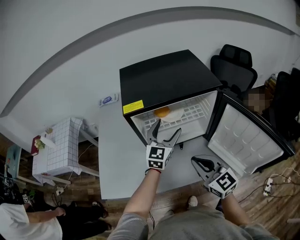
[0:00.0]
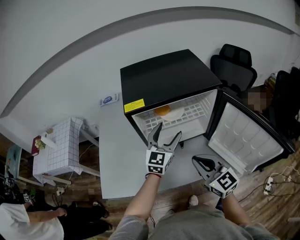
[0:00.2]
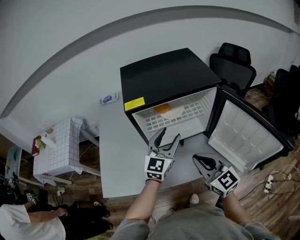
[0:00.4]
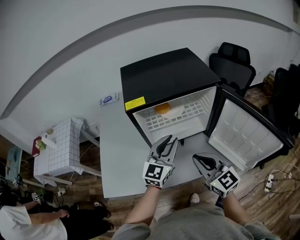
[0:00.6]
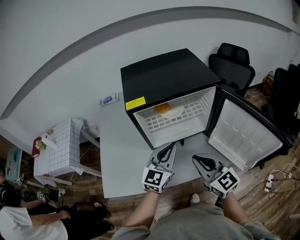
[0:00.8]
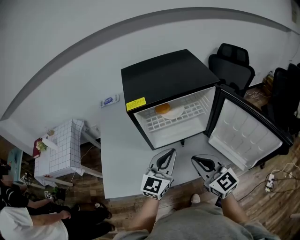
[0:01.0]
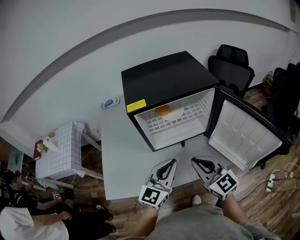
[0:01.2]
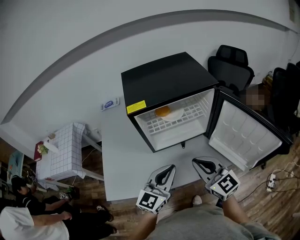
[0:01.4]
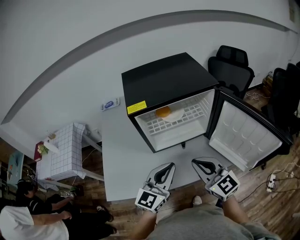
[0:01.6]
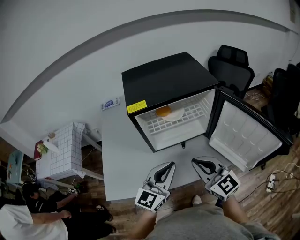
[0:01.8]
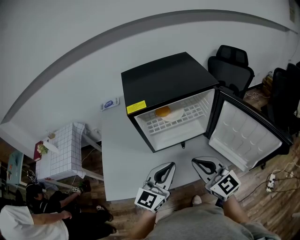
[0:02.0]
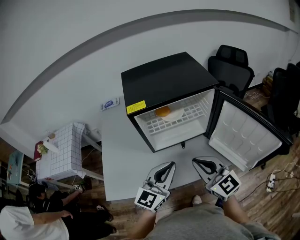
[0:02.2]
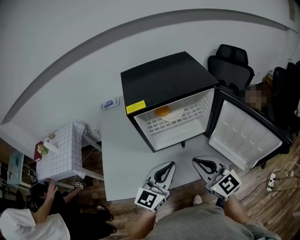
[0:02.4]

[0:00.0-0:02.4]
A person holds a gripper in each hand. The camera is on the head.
0:00.0 to 0:01.2: The left gripper is displaced backward by some 20 cm, and closes its fingers.
0:01.2 to 0:02.4: The grippers move only a little.

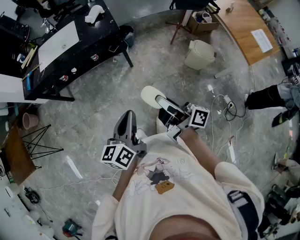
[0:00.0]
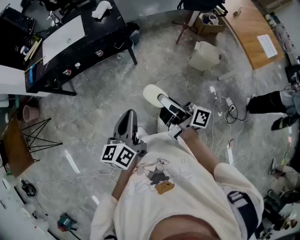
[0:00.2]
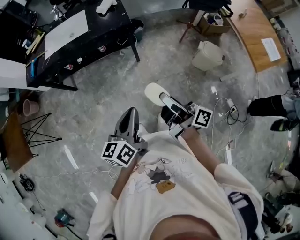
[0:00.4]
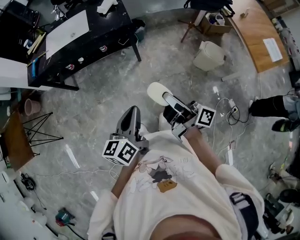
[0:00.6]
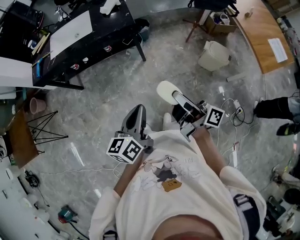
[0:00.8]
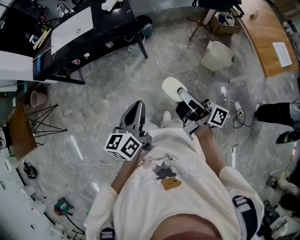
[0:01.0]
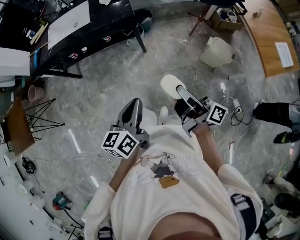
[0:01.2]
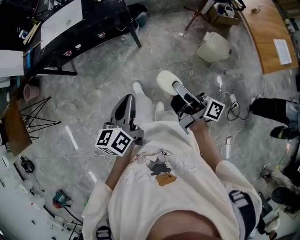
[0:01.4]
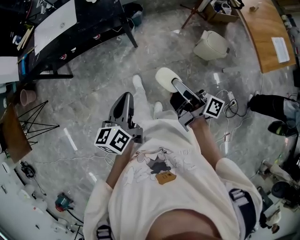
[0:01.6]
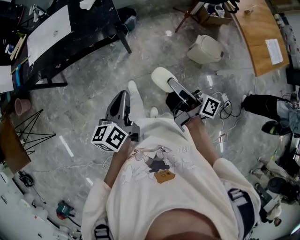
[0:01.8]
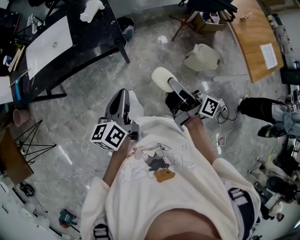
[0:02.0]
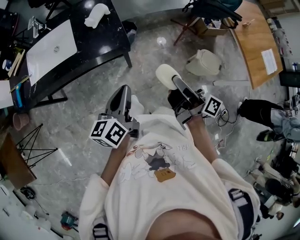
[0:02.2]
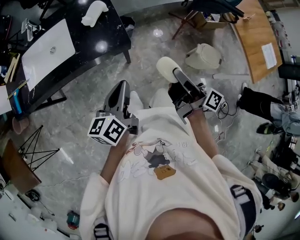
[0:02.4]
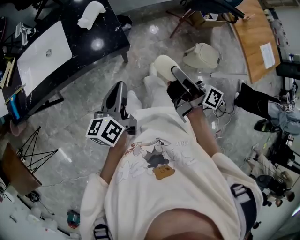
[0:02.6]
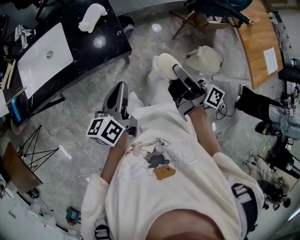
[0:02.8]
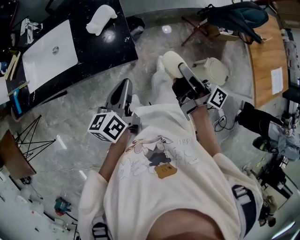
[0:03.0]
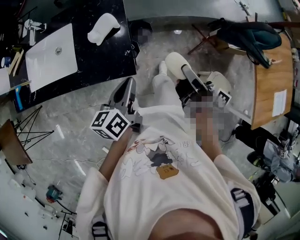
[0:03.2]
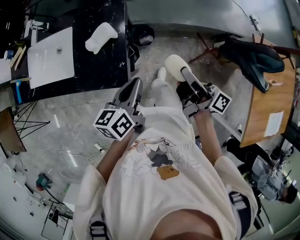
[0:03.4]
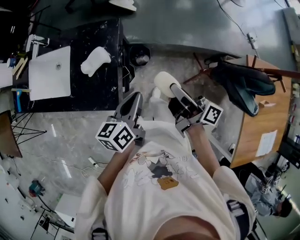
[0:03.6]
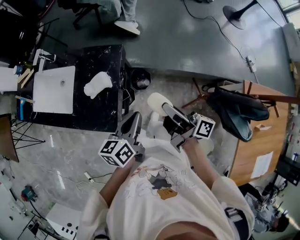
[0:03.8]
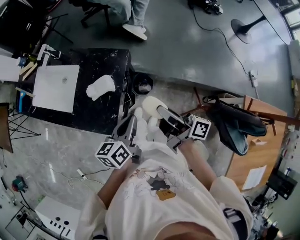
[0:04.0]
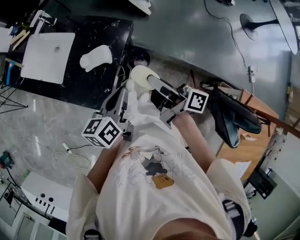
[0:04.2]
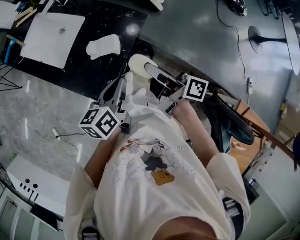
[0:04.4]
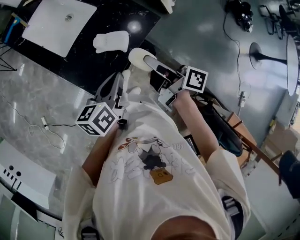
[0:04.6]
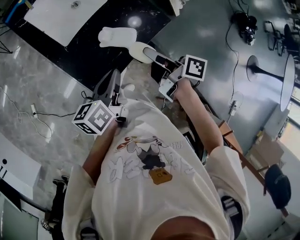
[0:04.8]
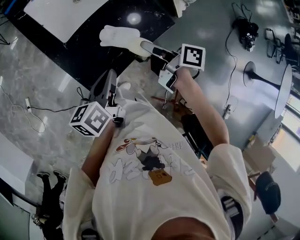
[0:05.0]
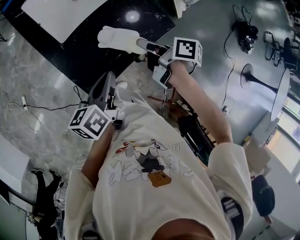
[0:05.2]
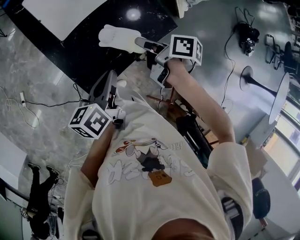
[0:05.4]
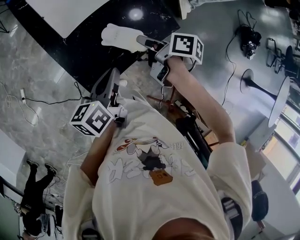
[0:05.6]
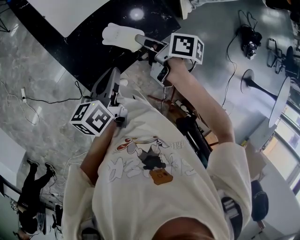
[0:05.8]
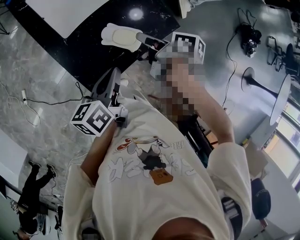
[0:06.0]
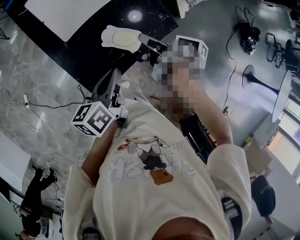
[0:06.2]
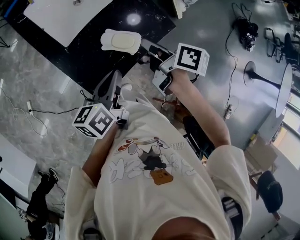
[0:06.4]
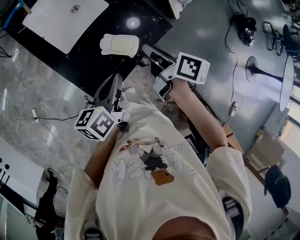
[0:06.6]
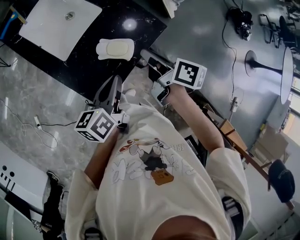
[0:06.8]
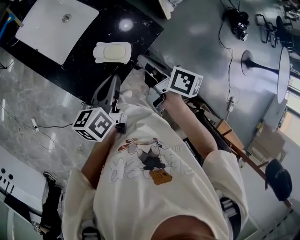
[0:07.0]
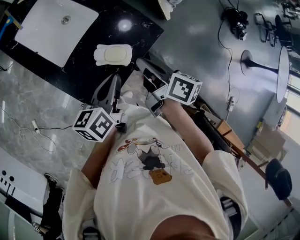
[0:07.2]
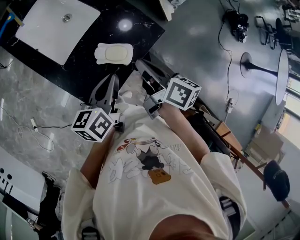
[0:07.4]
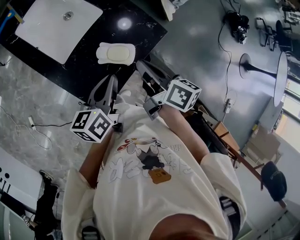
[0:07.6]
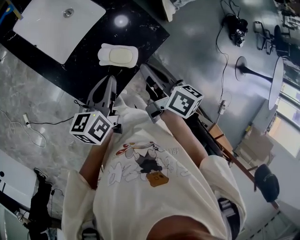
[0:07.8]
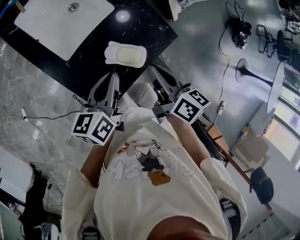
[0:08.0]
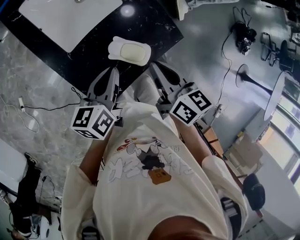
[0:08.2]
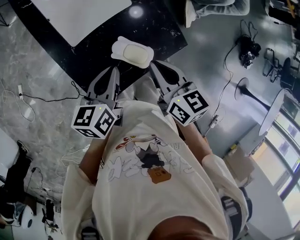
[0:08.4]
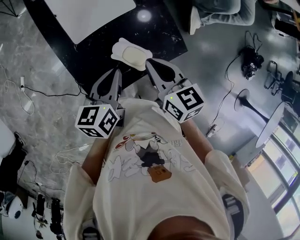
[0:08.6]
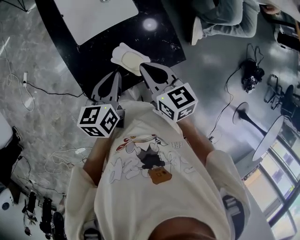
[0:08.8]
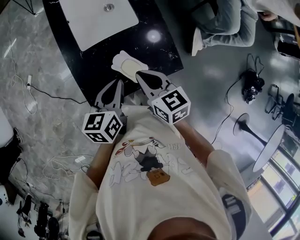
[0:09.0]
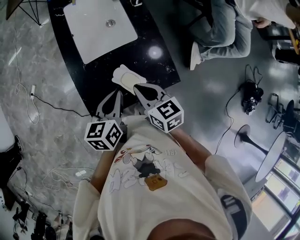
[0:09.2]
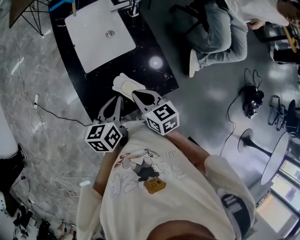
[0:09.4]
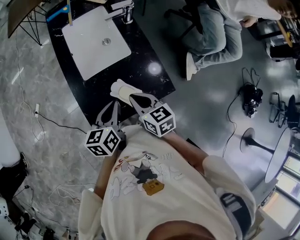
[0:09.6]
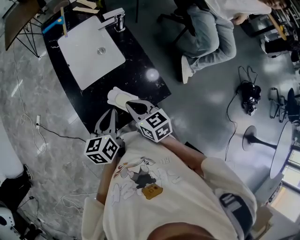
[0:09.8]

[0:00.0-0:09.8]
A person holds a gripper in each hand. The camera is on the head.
0:00.0 to 0:01.4: The left gripper shifts roughly 10 cm forward and to the right, while the right gripper moves to the right and forward, some 10 cm.
0:01.4 to 0:02.8: Both grippers move forward, about 40 cm.
0:02.8 to 0:04.2: The right gripper moves about 40 cm, and swivels about 50 degrees. Meanwhile the left gripper ends up about 35 cm from where it was, and rotates approximately 30 degrees.
0:04.2 to 0:05.6: The left gripper shifts by some 15 cm, and changes its angle by some 40 degrees; the right gripper moves some 25 cm, and points its fingers about 40 degrees further downward.
0:05.6 to 0:07.0: The right gripper moves upward, approximately 10 cm, turns by about 30 degrees, and closes up.
0:07.0 to 0:08.4: The right gripper travels to the left by about 5 cm, and rolls counterclockwise, seen from behind, by some 40 degrees; the left gripper goes roughly 10 cm to the left and forward.
0:08.4 to 0:09.8: The left gripper shifts roughly 5 cm backward. The right gripper rotates approximately 20 degrees.

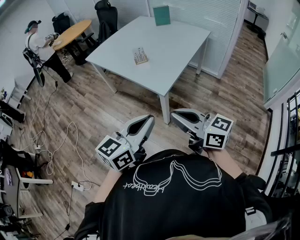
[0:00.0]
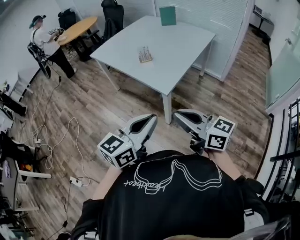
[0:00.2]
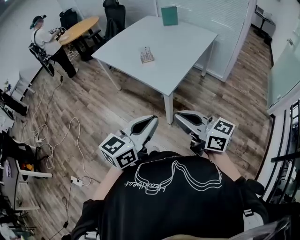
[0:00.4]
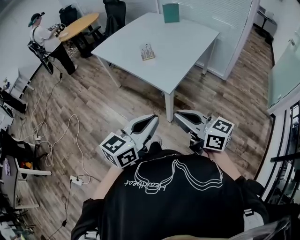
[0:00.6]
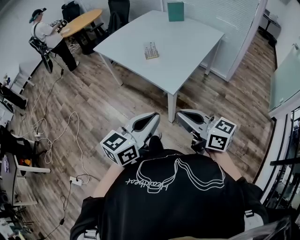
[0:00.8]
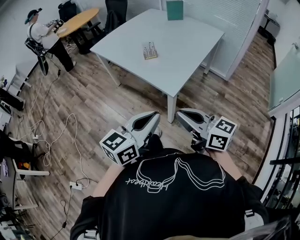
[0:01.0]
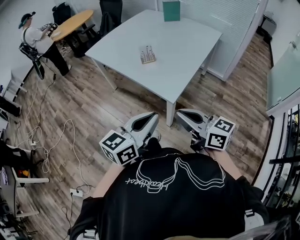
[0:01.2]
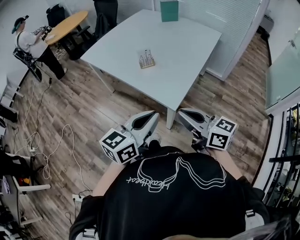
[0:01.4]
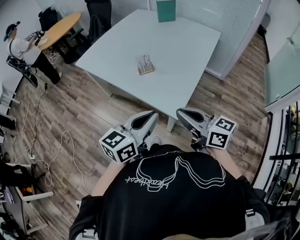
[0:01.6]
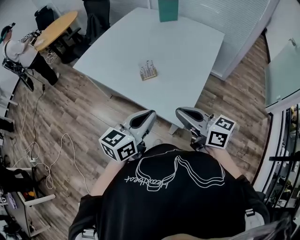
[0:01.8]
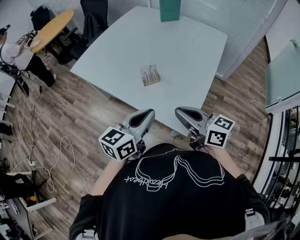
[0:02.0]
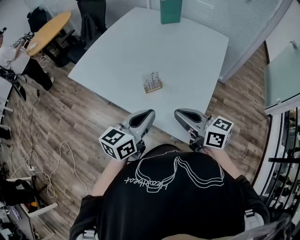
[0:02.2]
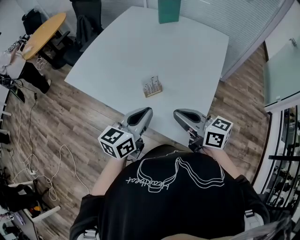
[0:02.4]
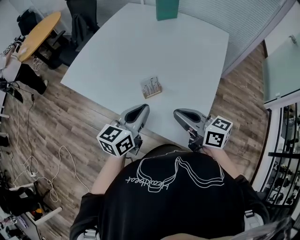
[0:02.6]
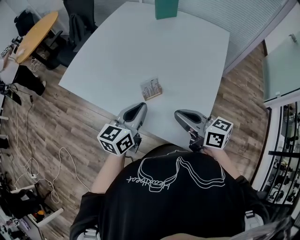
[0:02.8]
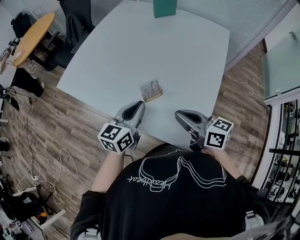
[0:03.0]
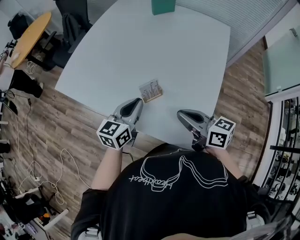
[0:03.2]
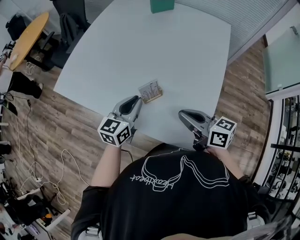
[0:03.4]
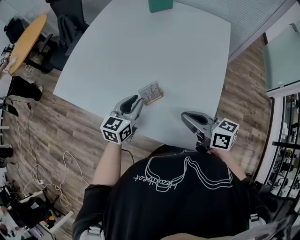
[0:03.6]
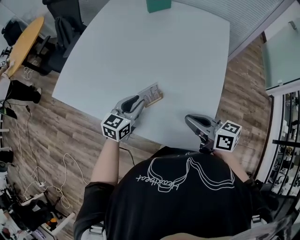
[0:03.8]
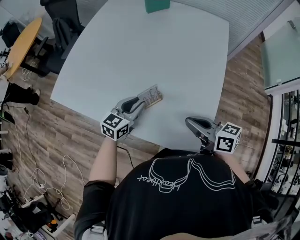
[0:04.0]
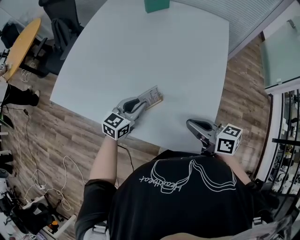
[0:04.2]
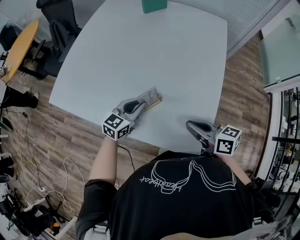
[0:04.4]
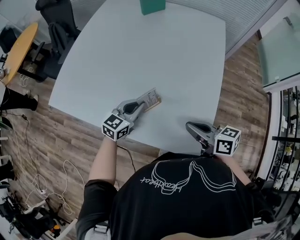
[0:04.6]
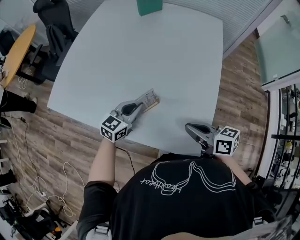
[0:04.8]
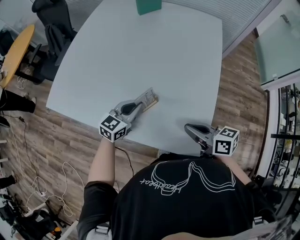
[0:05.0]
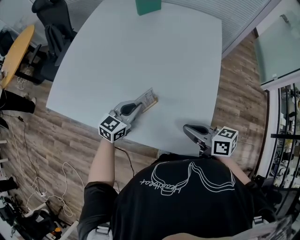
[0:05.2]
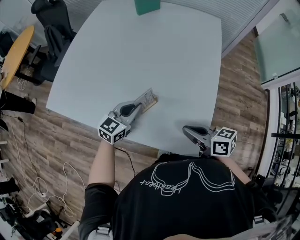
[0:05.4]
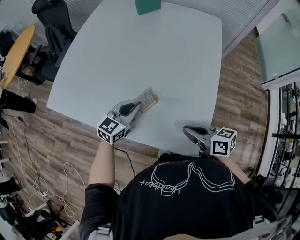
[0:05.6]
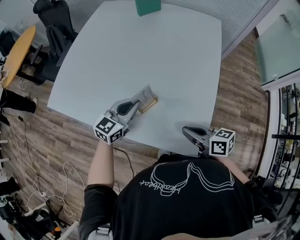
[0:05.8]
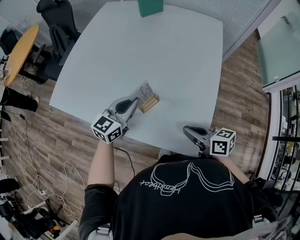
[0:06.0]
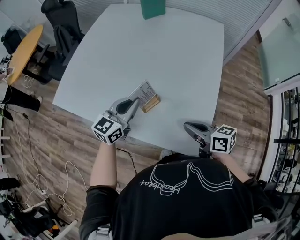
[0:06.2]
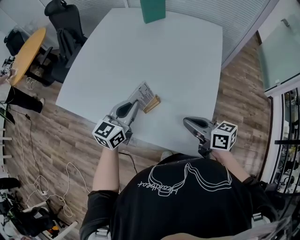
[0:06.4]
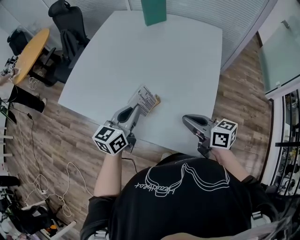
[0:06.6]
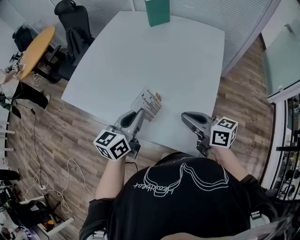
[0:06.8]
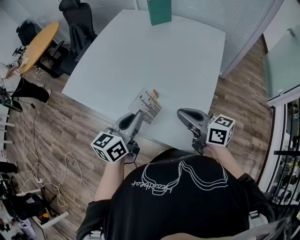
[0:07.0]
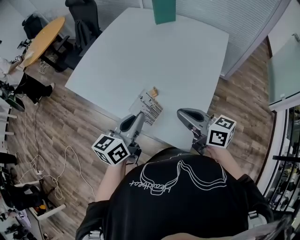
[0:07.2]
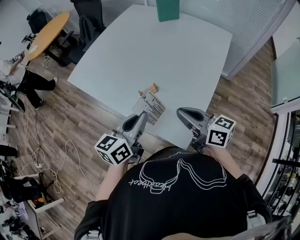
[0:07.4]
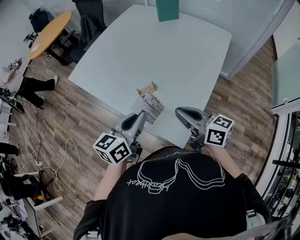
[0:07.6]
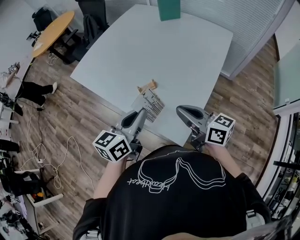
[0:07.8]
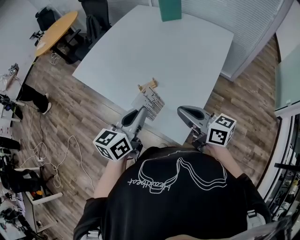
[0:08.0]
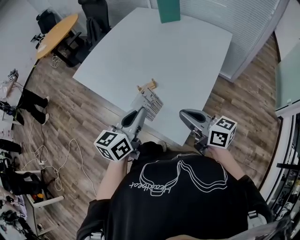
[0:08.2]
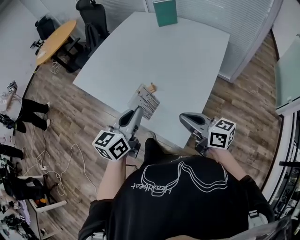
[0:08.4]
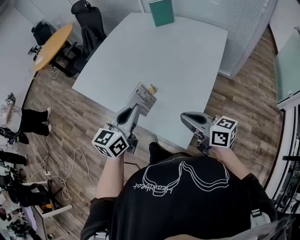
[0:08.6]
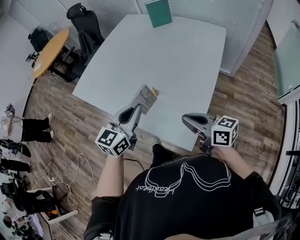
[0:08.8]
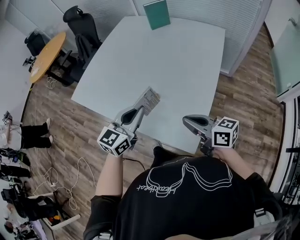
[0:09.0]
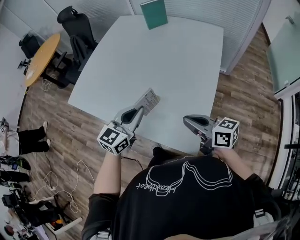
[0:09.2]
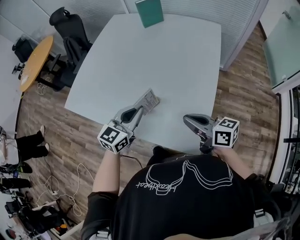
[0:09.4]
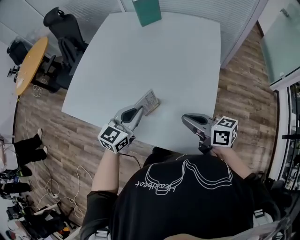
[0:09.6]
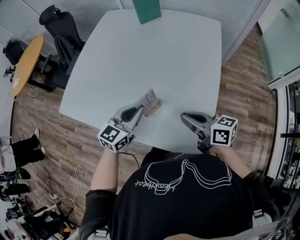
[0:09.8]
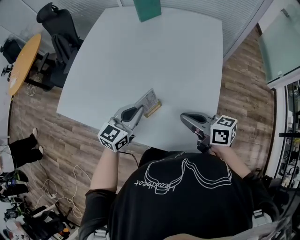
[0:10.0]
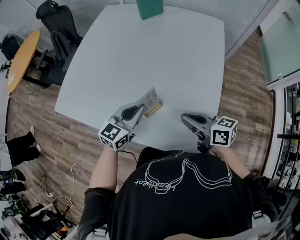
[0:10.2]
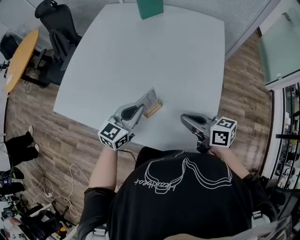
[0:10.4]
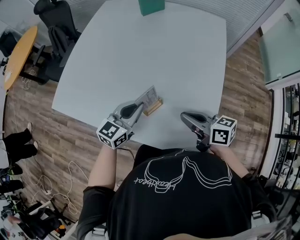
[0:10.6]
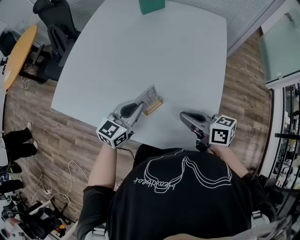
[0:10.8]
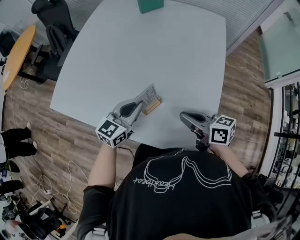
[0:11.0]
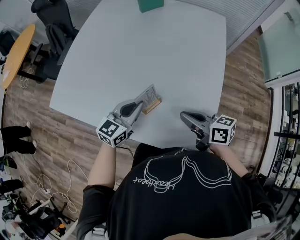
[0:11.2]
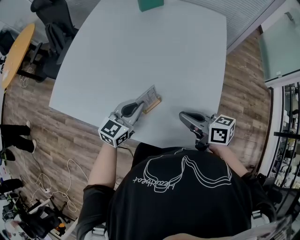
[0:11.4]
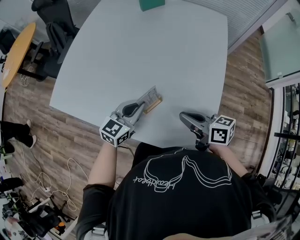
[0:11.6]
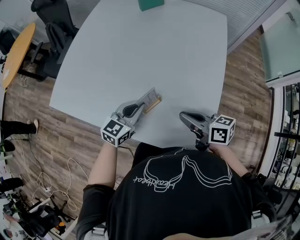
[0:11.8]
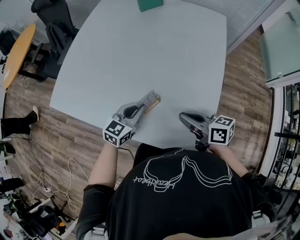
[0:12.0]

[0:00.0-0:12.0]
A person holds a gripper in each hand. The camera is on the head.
0:00.0 to 0:01.6: The grippers both shift forward by approximately 25 cm.
0:01.6 to 0:03.0: Both grippers move forward, roughly 30 cm.
0:03.0 to 0:04.4: The right gripper heads downward, covering some 5 cm. Meanwhile the left gripper goes some 15 cm downward and forward, and swivels some 20 degrees.
0:04.4 to 0:06.0: The left gripper heads upward, covering about 5 cm.
0:06.0 to 0:07.6: The left gripper is displaced backward and upward by roughly 20 cm, and turns by roughly 30 degrees. The right gripper moves upward, about 15 cm, and turns by about 20 degrees.
0:07.6 to 0:09.0: The left gripper heads forward, covering about 5 cm, and changes its angle by roughly 30 degrees.
0:09.0 to 0:10.4: The right gripper heads forward and to the left, covering approximately 10 cm. The left gripper travels forward and downward by about 15 cm.
0:10.4 to 0:12.0: The left gripper is displaced downward by about 5 cm.
